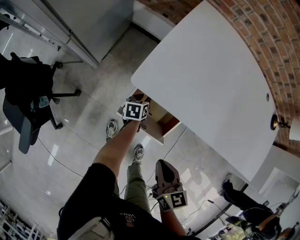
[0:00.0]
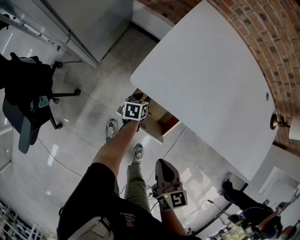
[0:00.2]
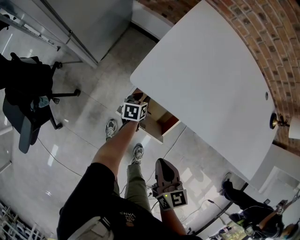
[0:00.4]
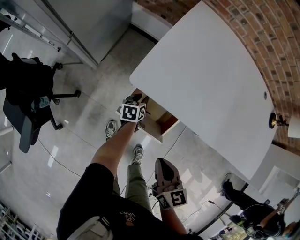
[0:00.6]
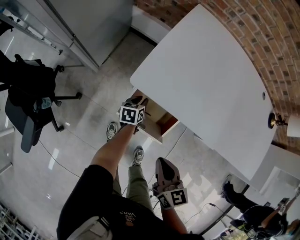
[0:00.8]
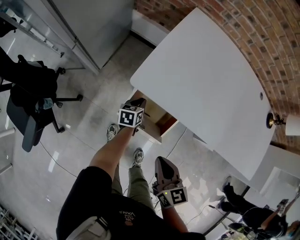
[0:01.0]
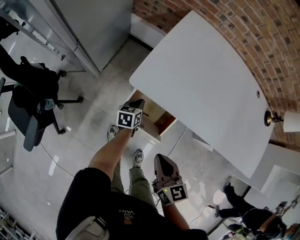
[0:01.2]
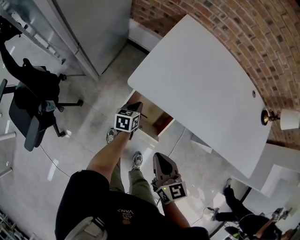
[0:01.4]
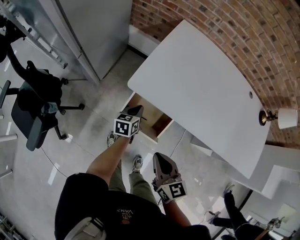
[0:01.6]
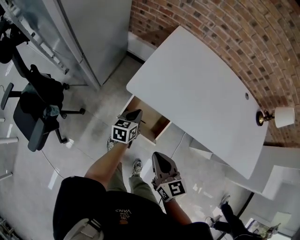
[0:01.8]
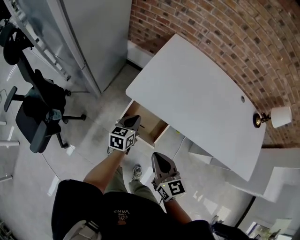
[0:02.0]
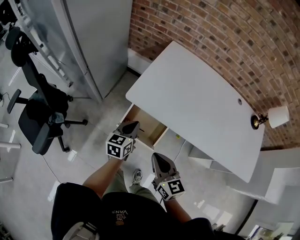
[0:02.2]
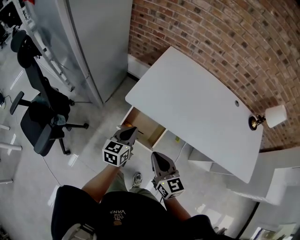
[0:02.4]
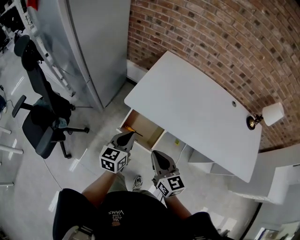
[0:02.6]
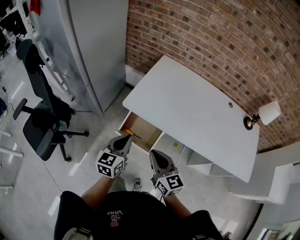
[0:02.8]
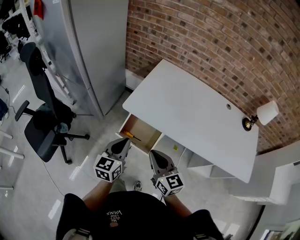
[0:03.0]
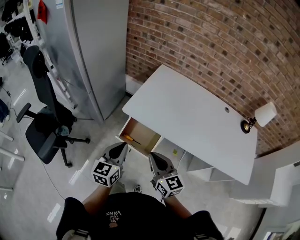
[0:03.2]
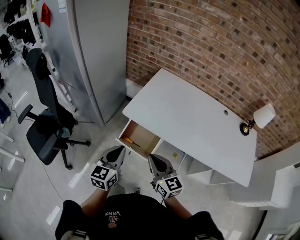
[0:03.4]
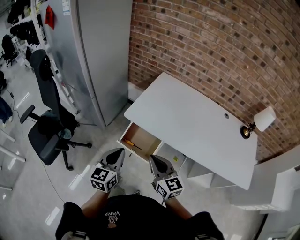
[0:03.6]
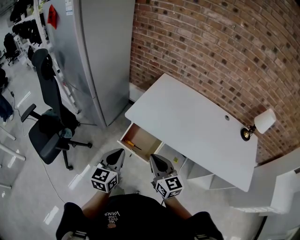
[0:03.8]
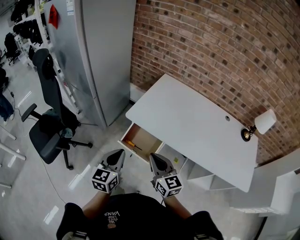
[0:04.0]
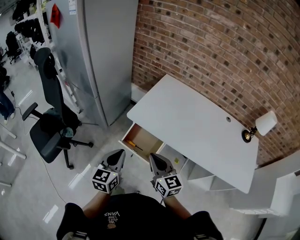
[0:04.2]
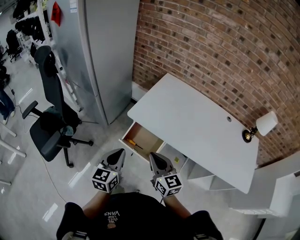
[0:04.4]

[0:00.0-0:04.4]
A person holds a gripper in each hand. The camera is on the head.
0:00.0 to 0:01.4: The right gripper moves upward, roughly 5 cm. The left gripper is displaced upward by some 15 cm, and closes its fingers.
0:01.4 to 0:03.0: The left gripper heads upward and backward, covering about 40 cm, and changes its angle by approximately 30 degrees. Meanwhile the right gripper heads upward and backward, covering roughly 15 cm.
0:03.0 to 0:04.4: The left gripper moves backward, roughly 5 cm.

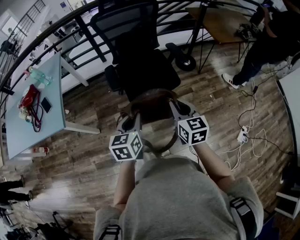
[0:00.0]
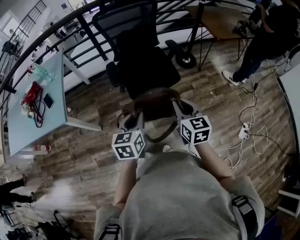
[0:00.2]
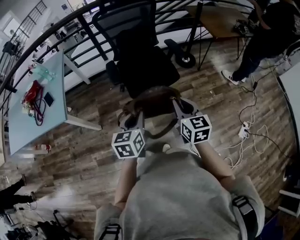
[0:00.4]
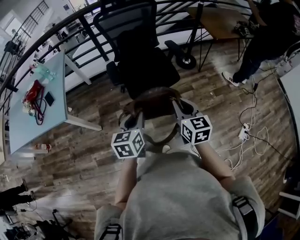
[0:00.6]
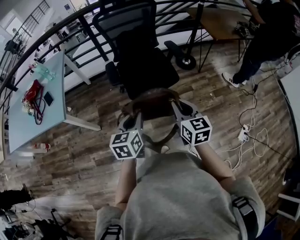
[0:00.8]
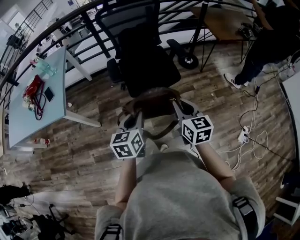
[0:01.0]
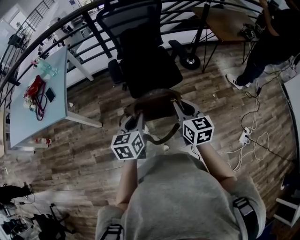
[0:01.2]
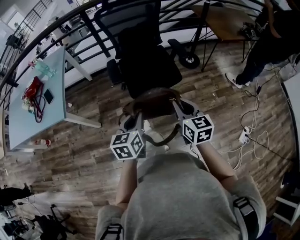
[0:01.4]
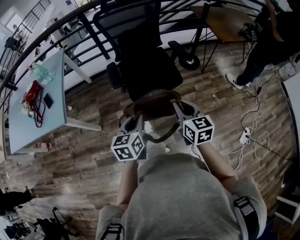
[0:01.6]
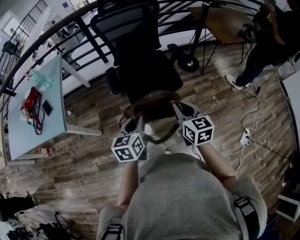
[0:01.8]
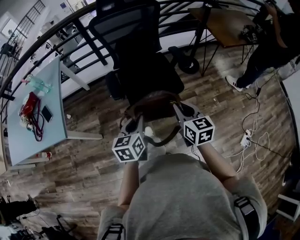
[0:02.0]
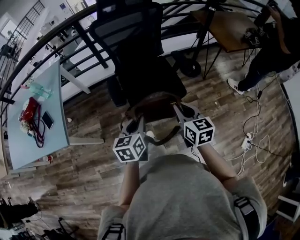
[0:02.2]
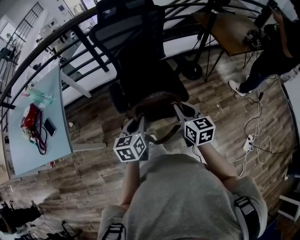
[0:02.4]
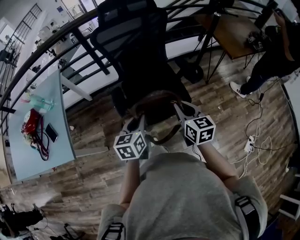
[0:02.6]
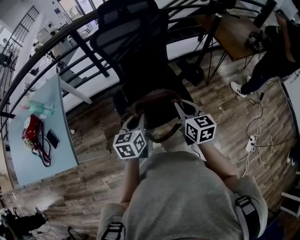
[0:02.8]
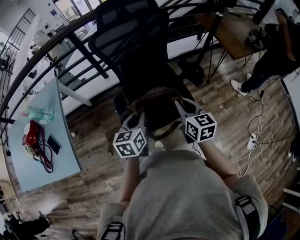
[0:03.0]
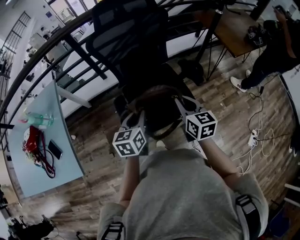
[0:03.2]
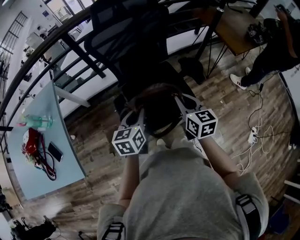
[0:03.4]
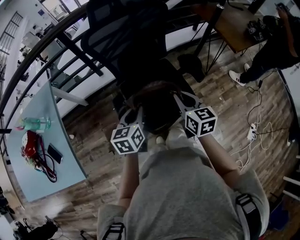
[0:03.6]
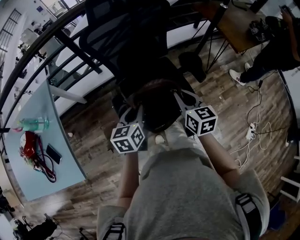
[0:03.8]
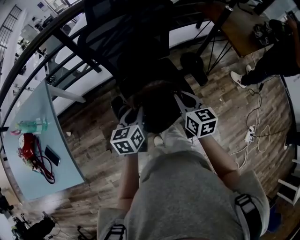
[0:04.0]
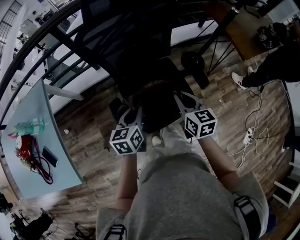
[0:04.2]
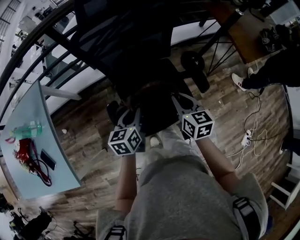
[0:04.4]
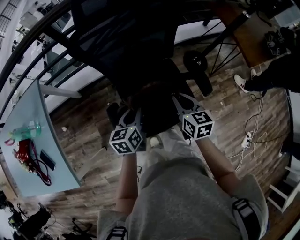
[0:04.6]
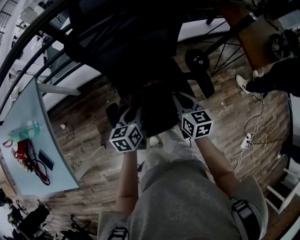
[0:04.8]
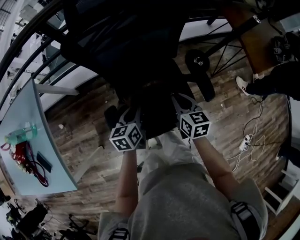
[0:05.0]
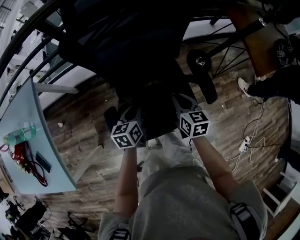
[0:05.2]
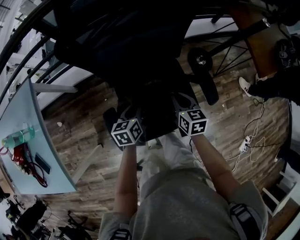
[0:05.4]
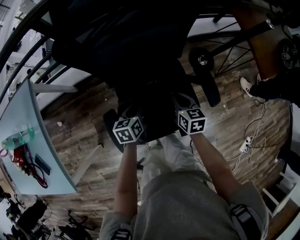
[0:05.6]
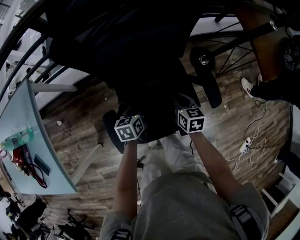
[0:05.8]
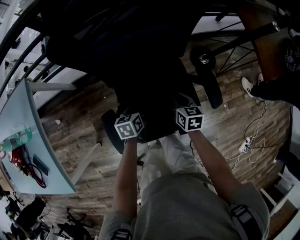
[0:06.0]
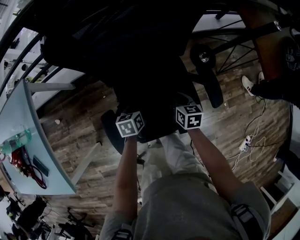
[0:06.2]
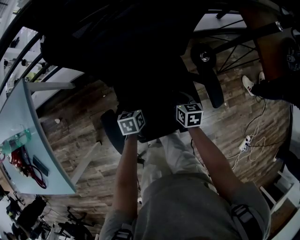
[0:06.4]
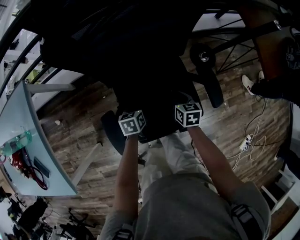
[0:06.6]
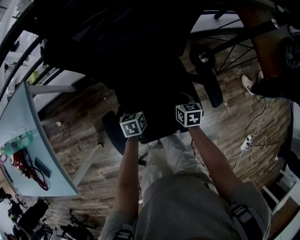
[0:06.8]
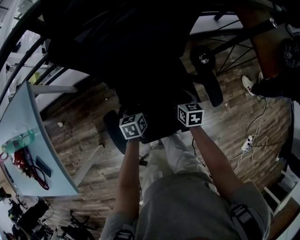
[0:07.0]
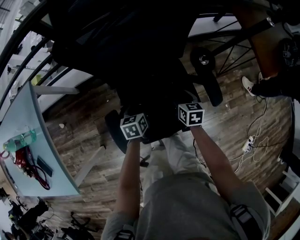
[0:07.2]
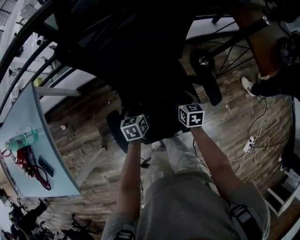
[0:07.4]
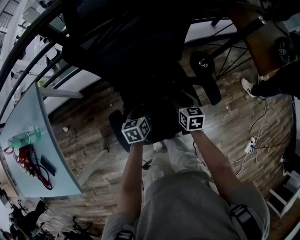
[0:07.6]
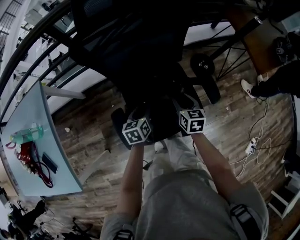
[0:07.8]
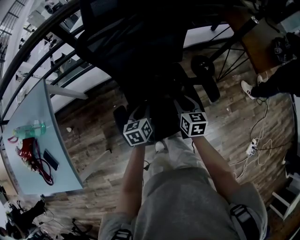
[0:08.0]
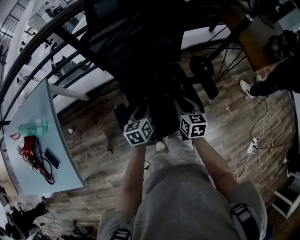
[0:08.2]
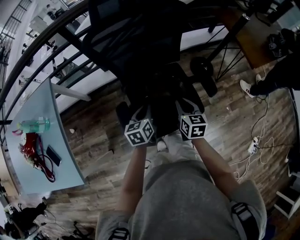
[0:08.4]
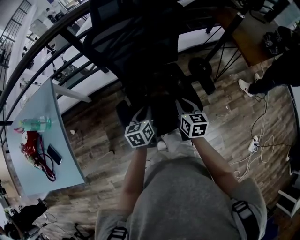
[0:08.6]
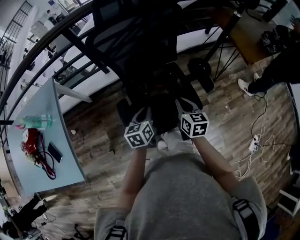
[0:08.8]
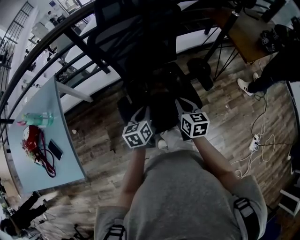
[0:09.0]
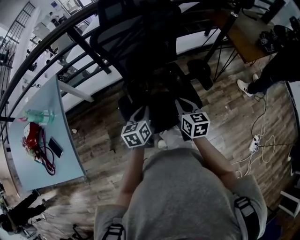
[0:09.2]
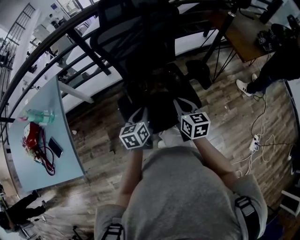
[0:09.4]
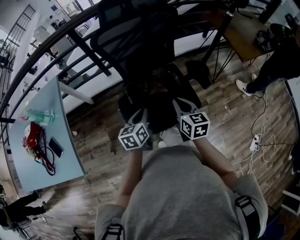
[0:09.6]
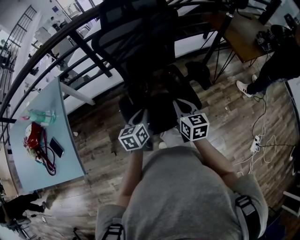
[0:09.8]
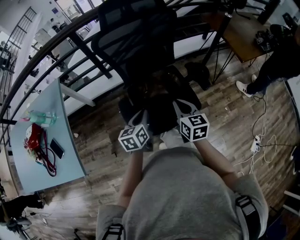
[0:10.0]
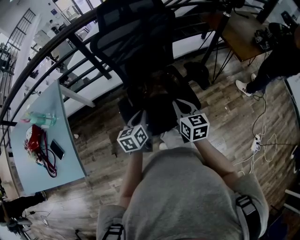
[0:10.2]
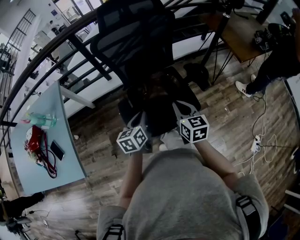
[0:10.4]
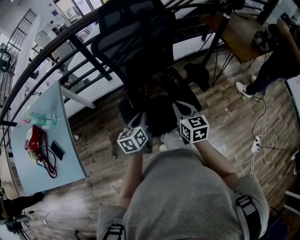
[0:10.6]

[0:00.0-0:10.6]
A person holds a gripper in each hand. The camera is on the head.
0:01.6 to 0:03.0: Both grippers travel together forward, about 25 cm.
0:03.0 to 0:04.6: The two grippers go about 20 cm forward and downward.
0:04.6 to 0:06.0: The left gripper goes approximately 20 cm downward. The right gripper is displaced downward and forward by approximately 20 cm.
0:06.0 to 0:07.6: The left gripper changes place by about 5 cm, and opens its fingers; the right gripper opens its fingers.
0:07.6 to 0:09.0: The left gripper travels upward and backward by about 20 cm, and closes its fingers; the right gripper moves backward and upward, approximately 20 cm, and closes.
0:09.0 to 0:10.6: The right gripper ends up approximately 5 cm from where it was. The left gripper moves roughly 5 cm.

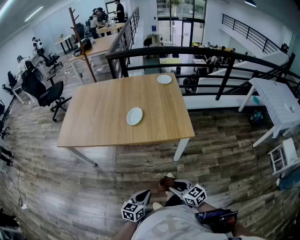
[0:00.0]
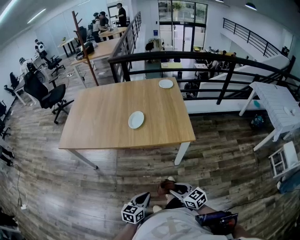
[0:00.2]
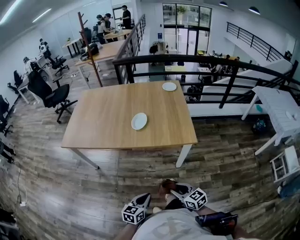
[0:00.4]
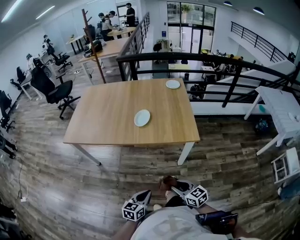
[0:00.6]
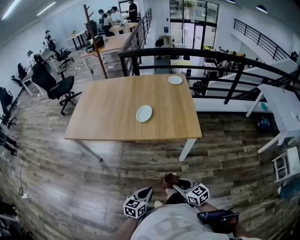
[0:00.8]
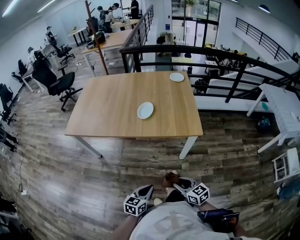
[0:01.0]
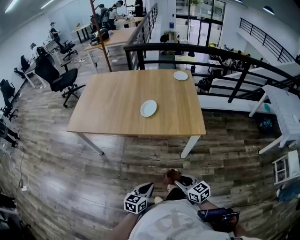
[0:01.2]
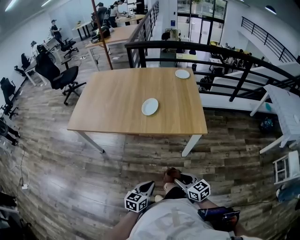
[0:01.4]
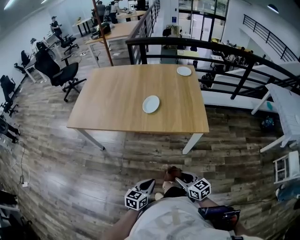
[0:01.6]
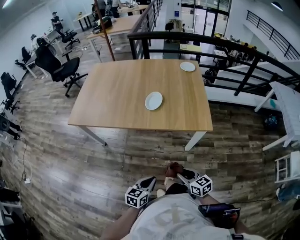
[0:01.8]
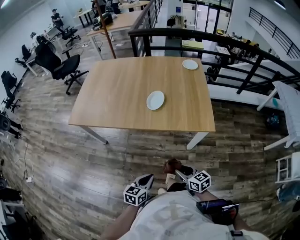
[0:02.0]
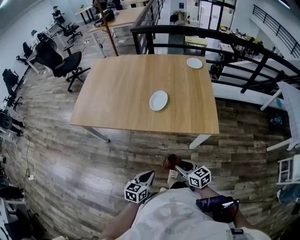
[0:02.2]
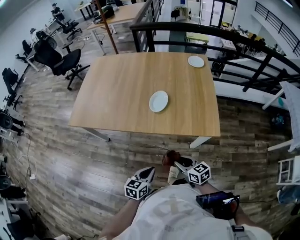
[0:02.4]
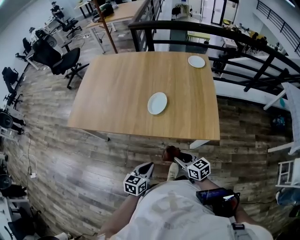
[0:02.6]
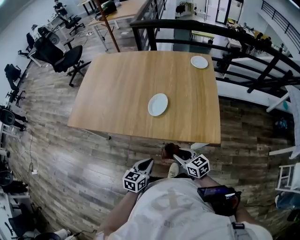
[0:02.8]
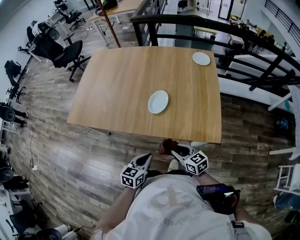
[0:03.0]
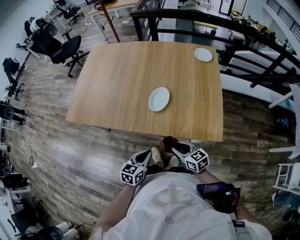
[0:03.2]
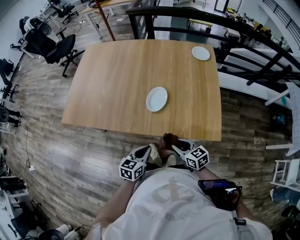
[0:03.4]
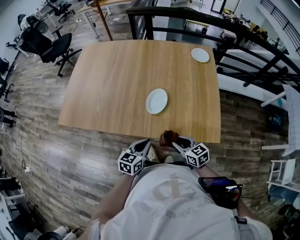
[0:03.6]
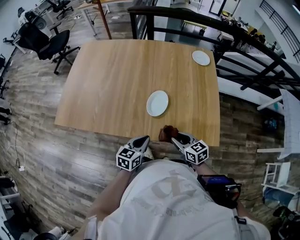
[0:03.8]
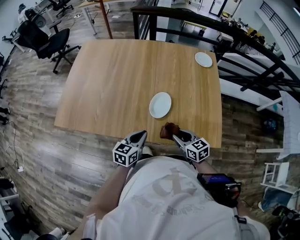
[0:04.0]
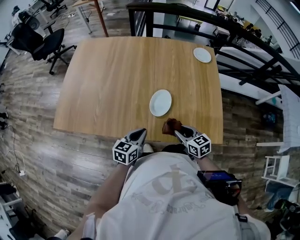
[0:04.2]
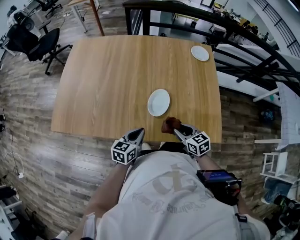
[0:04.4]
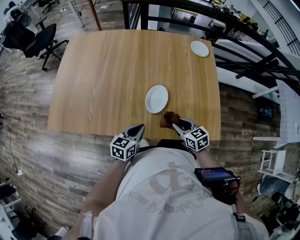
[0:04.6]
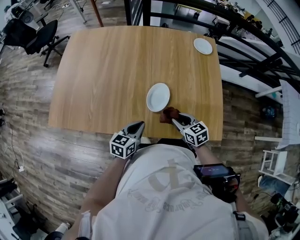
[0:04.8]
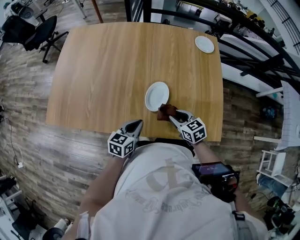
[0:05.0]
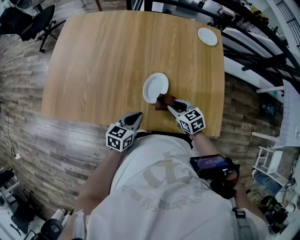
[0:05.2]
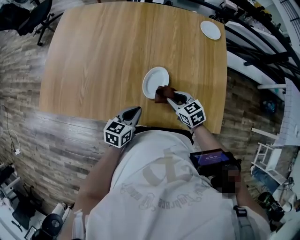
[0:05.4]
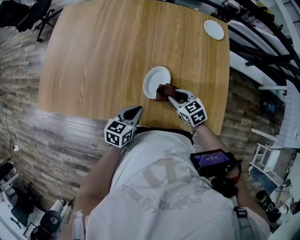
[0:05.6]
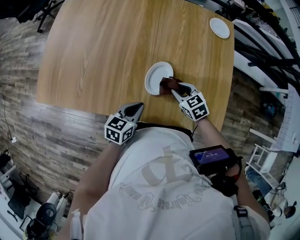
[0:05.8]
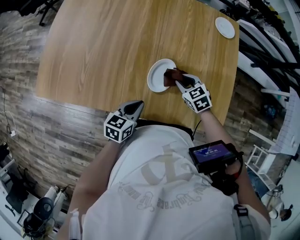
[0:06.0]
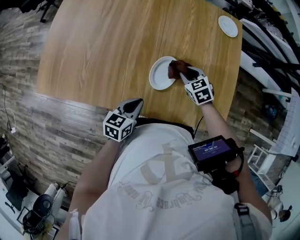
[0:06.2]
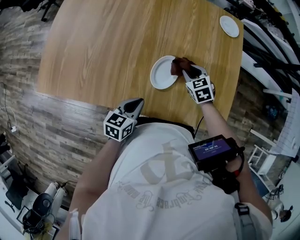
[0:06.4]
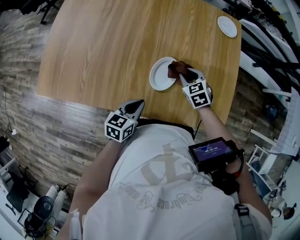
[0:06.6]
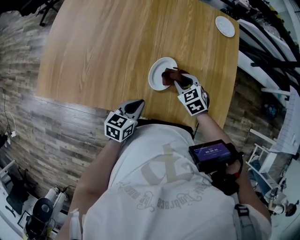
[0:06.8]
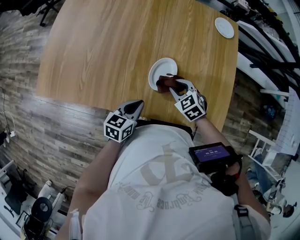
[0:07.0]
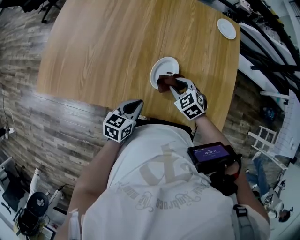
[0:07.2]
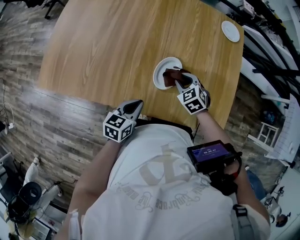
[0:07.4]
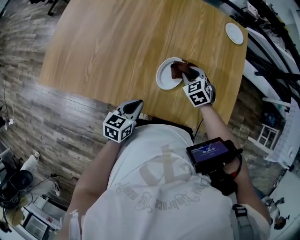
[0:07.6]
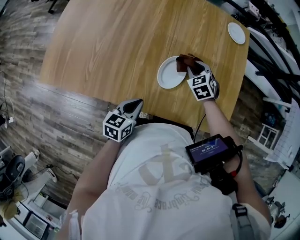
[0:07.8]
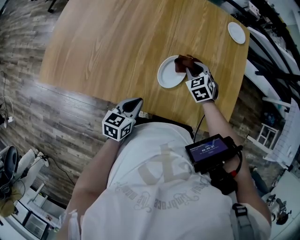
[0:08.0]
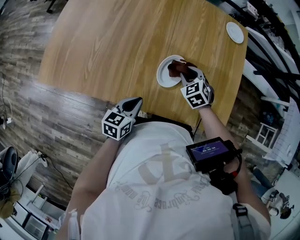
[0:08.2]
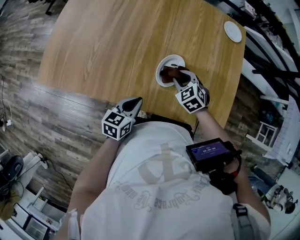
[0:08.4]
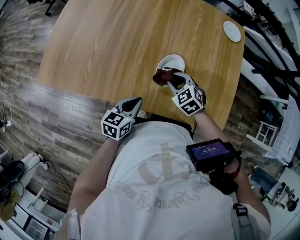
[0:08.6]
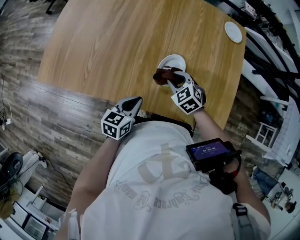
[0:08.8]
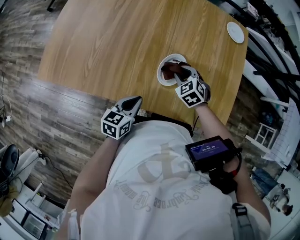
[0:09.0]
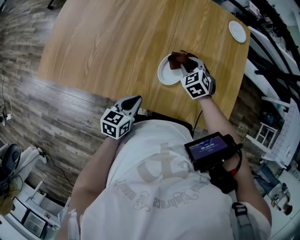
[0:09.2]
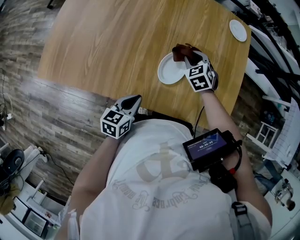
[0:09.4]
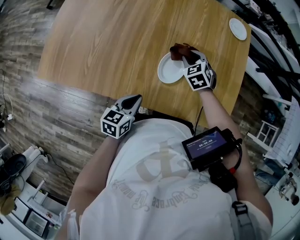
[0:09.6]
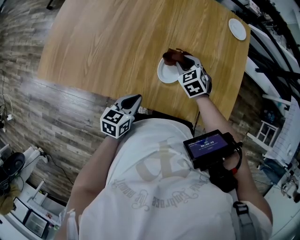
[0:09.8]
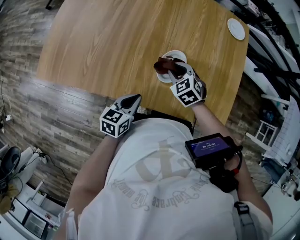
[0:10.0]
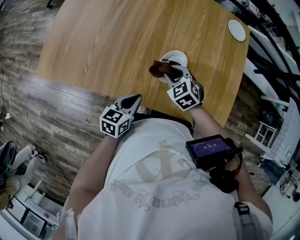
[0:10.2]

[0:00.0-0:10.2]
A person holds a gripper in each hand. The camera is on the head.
0:00.0 to 0:01.4: The grippers stay close to where they were, moving slightly.
0:01.4 to 0:03.0: Both grippers move forward, roughly 25 cm.
0:03.0 to 0:04.4: The two grippers go some 15 cm forward.
0:04.4 to 0:05.8: The right gripper moves forward and downward, some 15 cm, and turns by approximately 20 degrees; the left gripper changes place by approximately 5 cm.
0:05.8 to 0:07.2: The right gripper travels forward and back again, roughly 5 cm each way.
0:07.2 to 0:08.8: The right gripper moves roughly 10 cm forward and comes back.
0:08.8 to 0:10.2: The right gripper travels forward and back again, approximately 10 cm each way.
